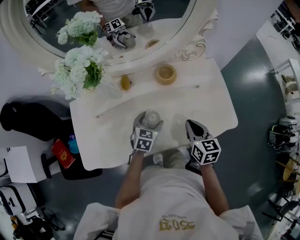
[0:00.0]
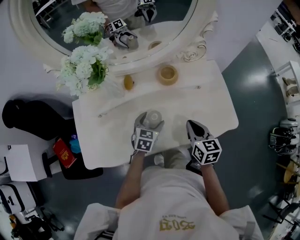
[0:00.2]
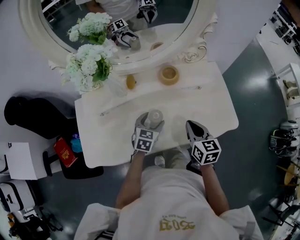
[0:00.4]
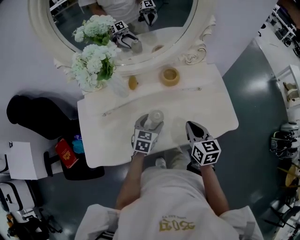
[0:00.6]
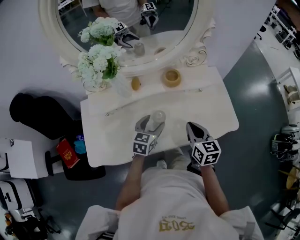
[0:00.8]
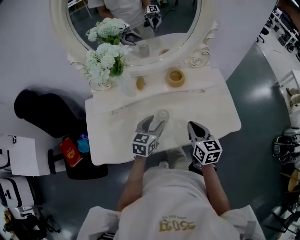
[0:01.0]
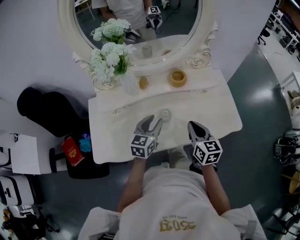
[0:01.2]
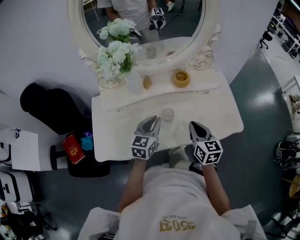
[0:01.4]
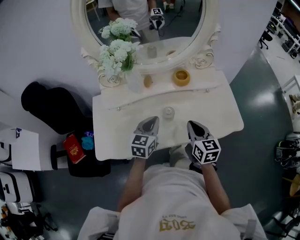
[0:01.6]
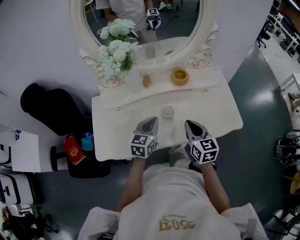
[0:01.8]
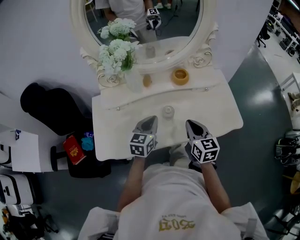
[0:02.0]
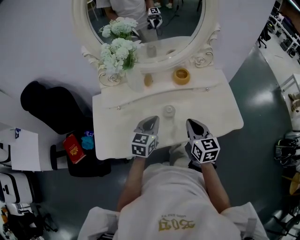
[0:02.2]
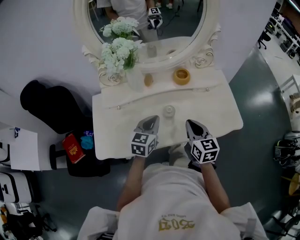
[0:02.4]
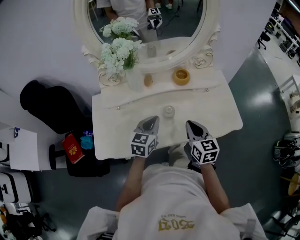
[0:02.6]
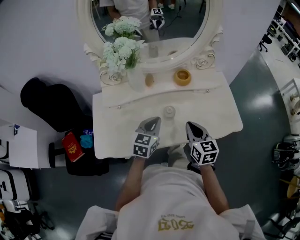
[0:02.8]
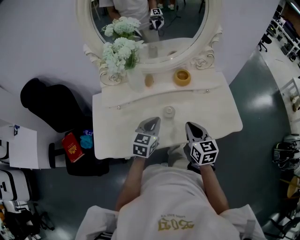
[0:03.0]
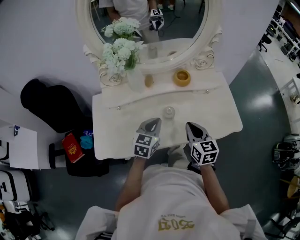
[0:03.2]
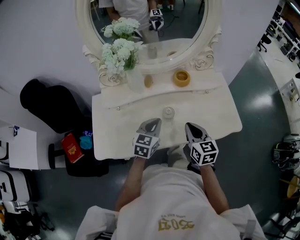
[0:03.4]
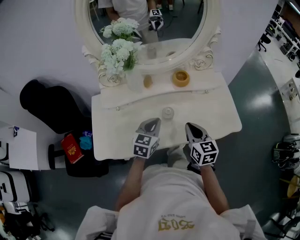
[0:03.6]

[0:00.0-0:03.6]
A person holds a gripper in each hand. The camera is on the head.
0:00.0 to 0:01.8: The left gripper moves upward, backward and to the left, some 15 cm, swivels roughly 20 degrees, and closes. Meanwhile the right gripper is displaced to the left, backward and upward by some 10 cm.
0:01.8 to 0:03.6: There are only small adjustments of the grippers.

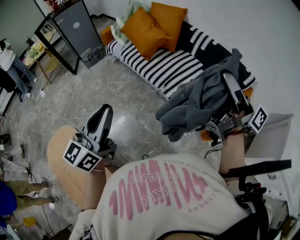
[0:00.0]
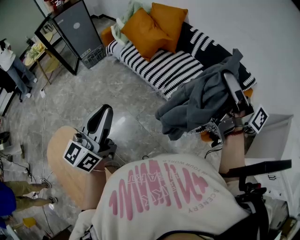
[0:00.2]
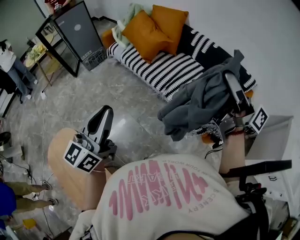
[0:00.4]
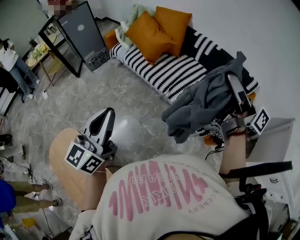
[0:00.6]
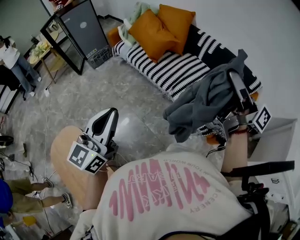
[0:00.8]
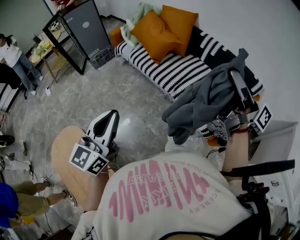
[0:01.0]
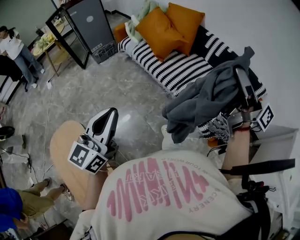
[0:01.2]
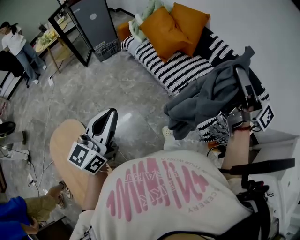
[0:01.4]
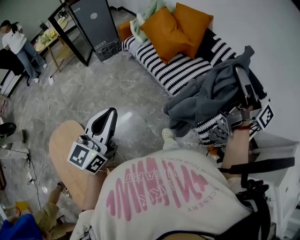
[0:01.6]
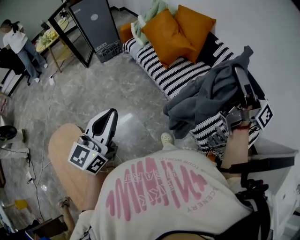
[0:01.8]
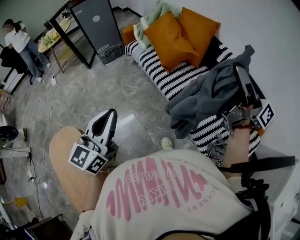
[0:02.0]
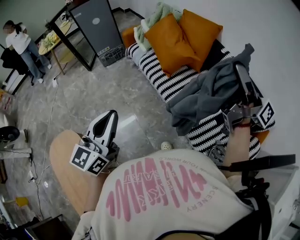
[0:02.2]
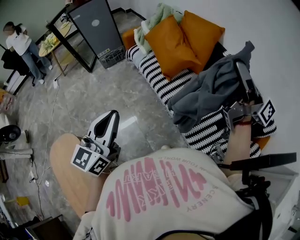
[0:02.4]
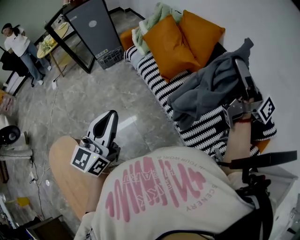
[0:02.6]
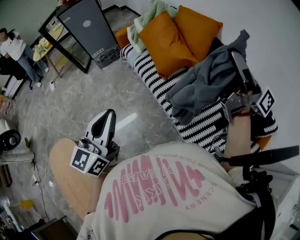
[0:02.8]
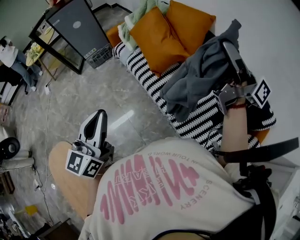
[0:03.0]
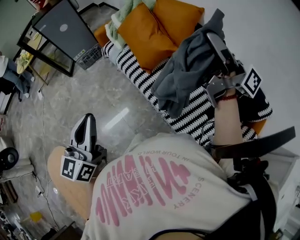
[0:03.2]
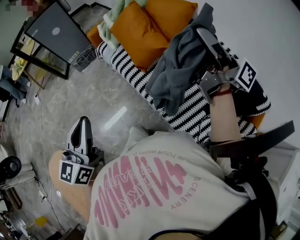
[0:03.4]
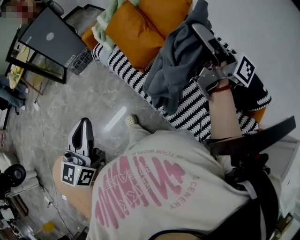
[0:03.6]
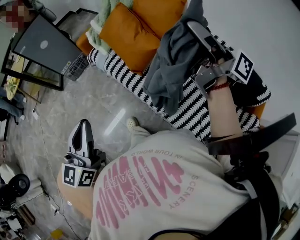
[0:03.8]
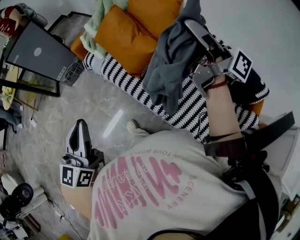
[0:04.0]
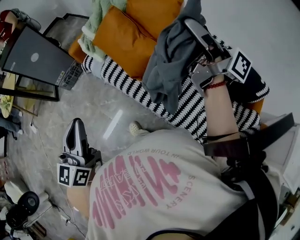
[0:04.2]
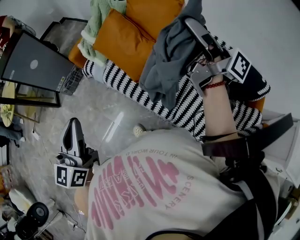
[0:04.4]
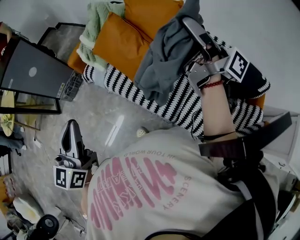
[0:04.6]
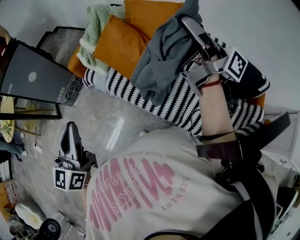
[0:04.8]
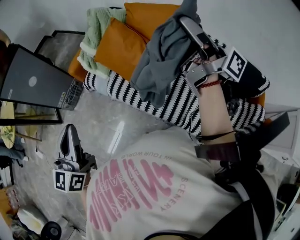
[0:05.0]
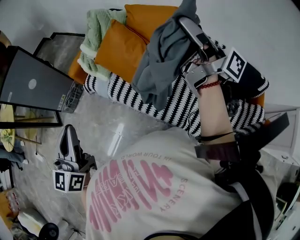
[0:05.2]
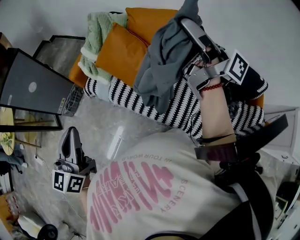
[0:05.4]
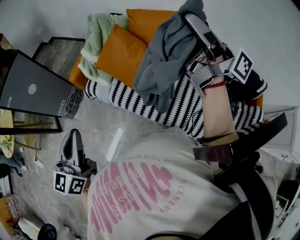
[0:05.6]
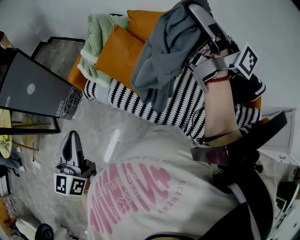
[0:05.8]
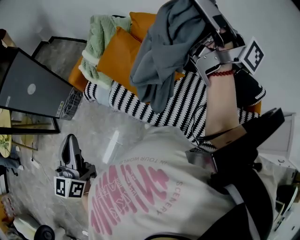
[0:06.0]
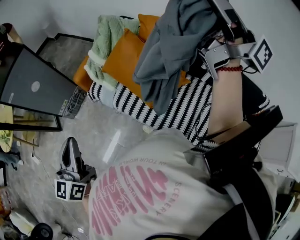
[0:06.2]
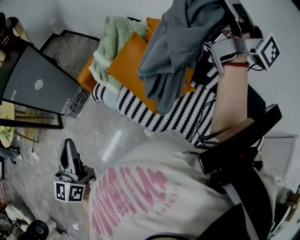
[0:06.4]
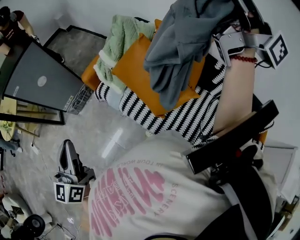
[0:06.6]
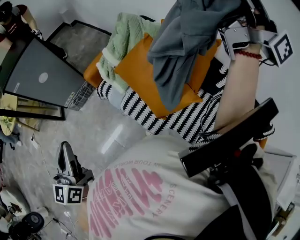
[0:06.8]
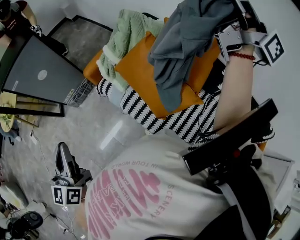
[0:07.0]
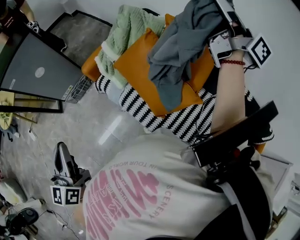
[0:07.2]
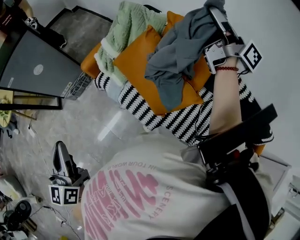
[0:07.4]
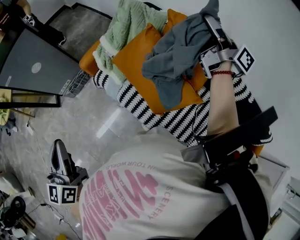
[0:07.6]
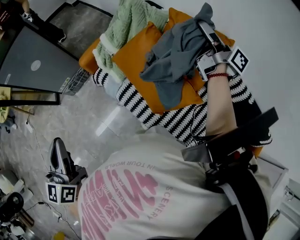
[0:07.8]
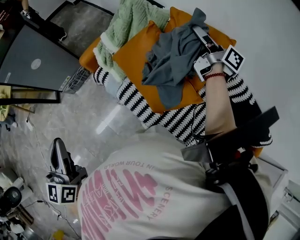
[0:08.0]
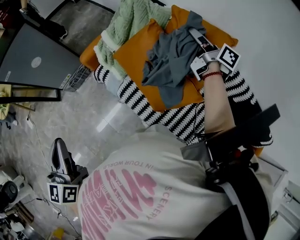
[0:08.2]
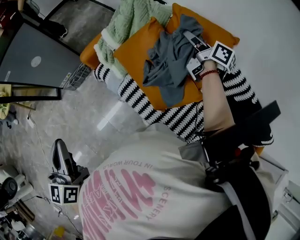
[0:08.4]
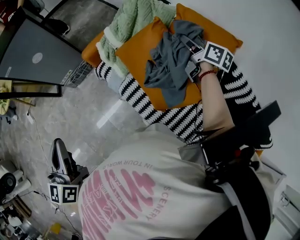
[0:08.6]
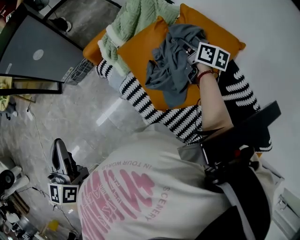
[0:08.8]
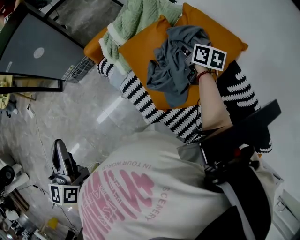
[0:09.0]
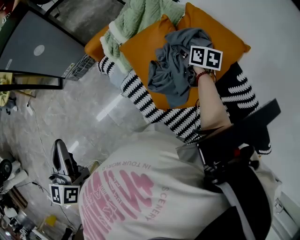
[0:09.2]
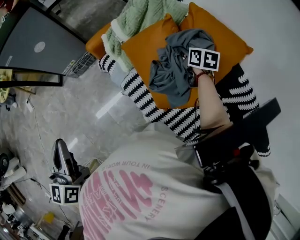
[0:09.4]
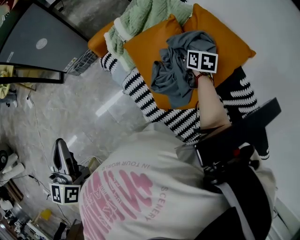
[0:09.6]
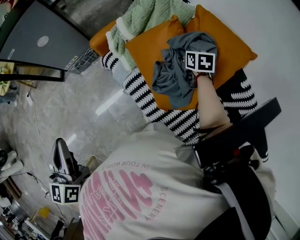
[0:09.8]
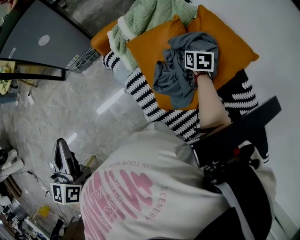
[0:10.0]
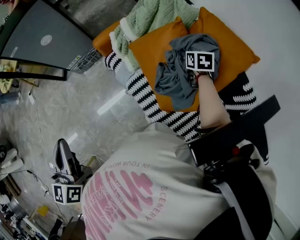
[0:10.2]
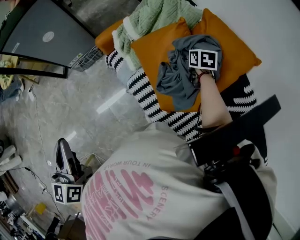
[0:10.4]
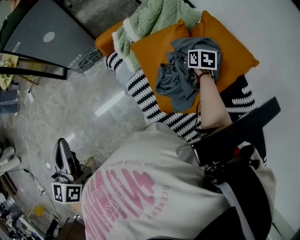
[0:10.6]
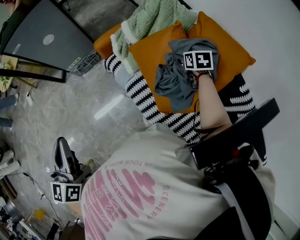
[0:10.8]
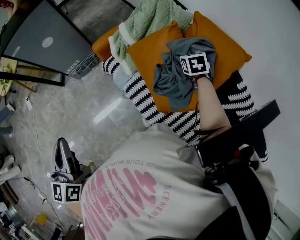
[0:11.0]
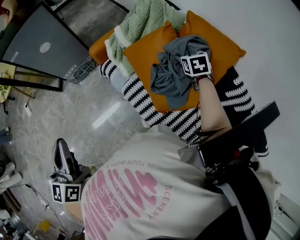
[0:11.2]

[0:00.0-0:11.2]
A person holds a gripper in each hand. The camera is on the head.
0:00.0 to 0:01.6: The left gripper is displaced forward by some 15 cm; the right gripper is displaced forward by approximately 20 cm.
0:01.6 to 0:03.2: The left gripper is displaced forward by approximately 10 cm. Meanwhile the right gripper goes approximately 15 cm forward.
0:03.2 to 0:04.8: The left gripper travels forward by some 25 cm. The right gripper heads forward, covering about 15 cm.
0:04.8 to 0:06.4: The right gripper moves upward and forward, about 20 cm, and rotates some 20 degrees, while the left gripper heads to the left and forward, covering roughly 10 cm.
0:06.4 to 0:08.0: The right gripper heads downward and forward, covering roughly 35 cm, and rotates about 40 degrees.
0:08.0 to 0:09.6: The right gripper heads downward, covering approximately 20 cm, and tilts its fingers approximately 50 degrees downward, while the left gripper heads backward, covering roughly 5 cm.
0:09.6 to 0:11.2: The right gripper swivels roughly 30 degrees, and opens up.

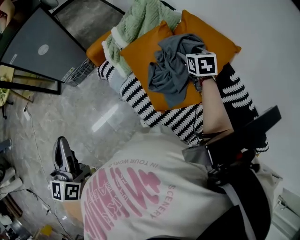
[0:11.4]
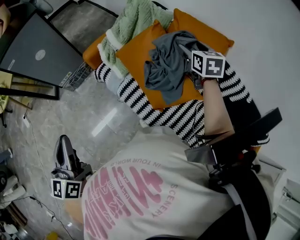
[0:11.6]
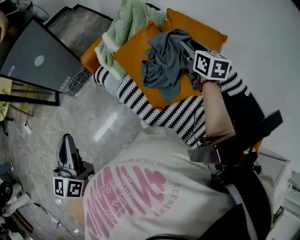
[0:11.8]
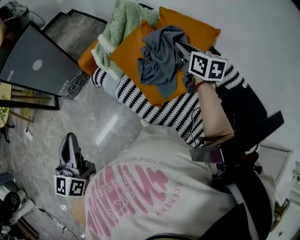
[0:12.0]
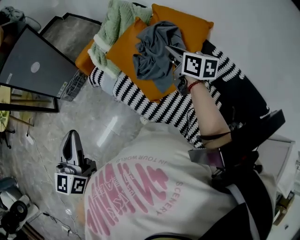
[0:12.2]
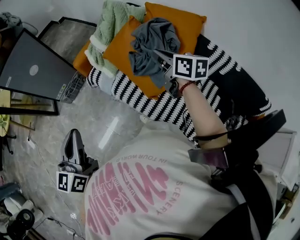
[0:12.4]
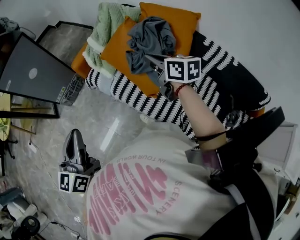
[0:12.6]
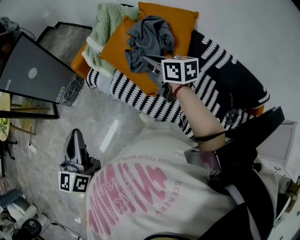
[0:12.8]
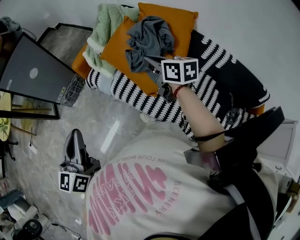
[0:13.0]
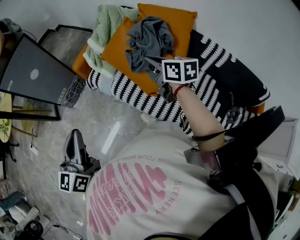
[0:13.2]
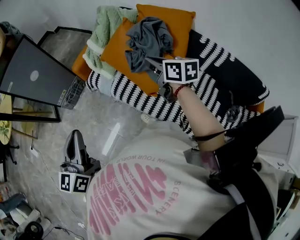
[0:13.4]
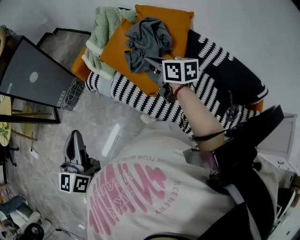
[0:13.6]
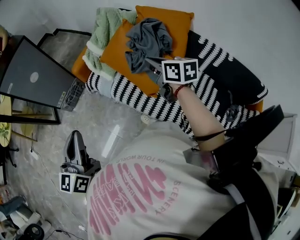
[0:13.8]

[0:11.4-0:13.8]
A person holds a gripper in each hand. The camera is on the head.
0:11.4 to 0:12.6: The right gripper travels backward and to the left by approximately 20 cm, swivels some 40 degrees, and closes up; the left gripper shifts approximately 5 cm to the right, and swivels some 20 degrees.
0:12.6 to 0:13.8: There are only small adjustments of the grippers.

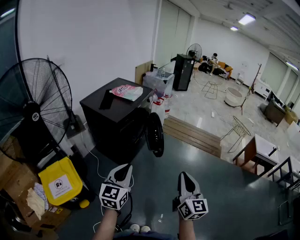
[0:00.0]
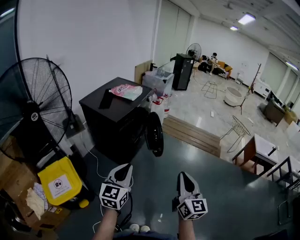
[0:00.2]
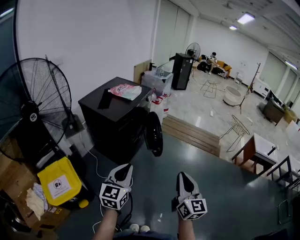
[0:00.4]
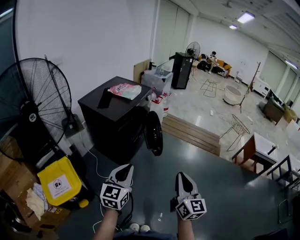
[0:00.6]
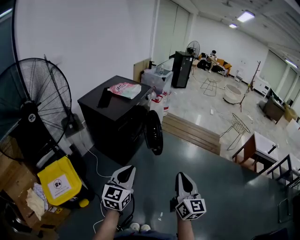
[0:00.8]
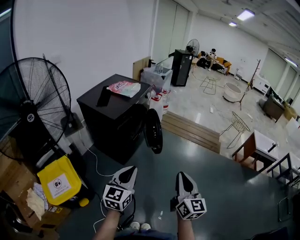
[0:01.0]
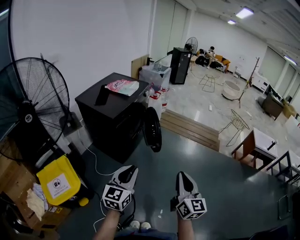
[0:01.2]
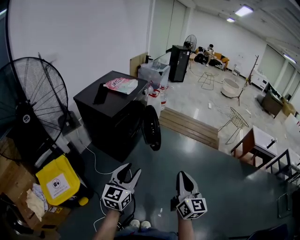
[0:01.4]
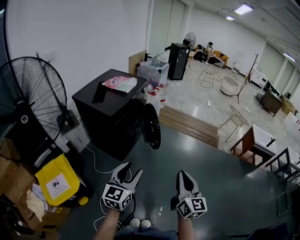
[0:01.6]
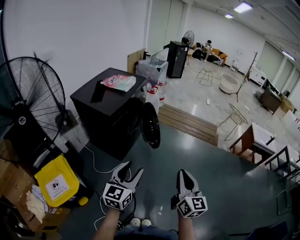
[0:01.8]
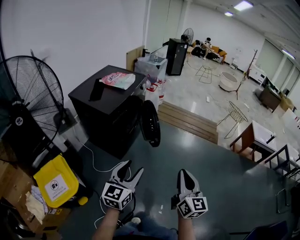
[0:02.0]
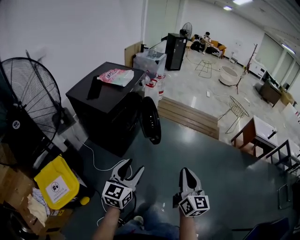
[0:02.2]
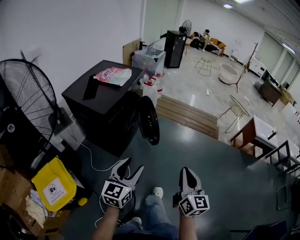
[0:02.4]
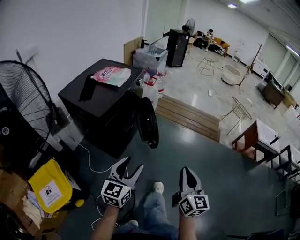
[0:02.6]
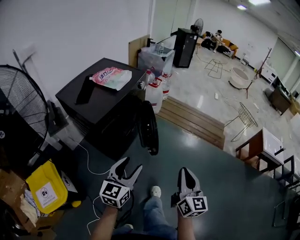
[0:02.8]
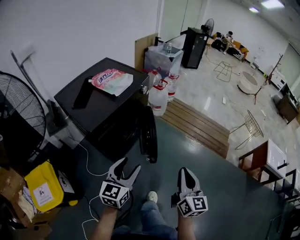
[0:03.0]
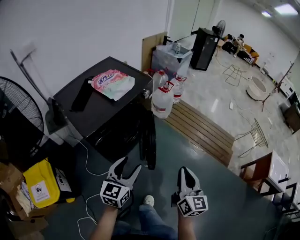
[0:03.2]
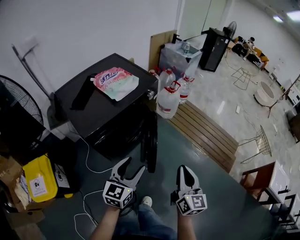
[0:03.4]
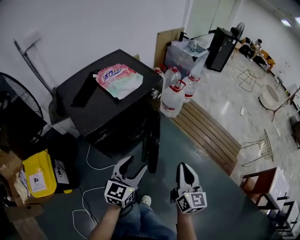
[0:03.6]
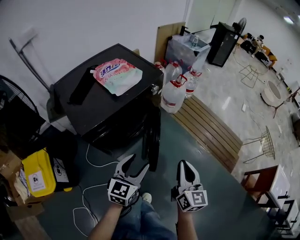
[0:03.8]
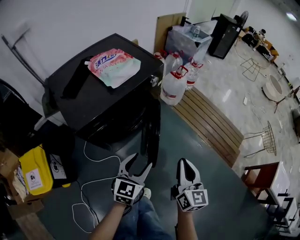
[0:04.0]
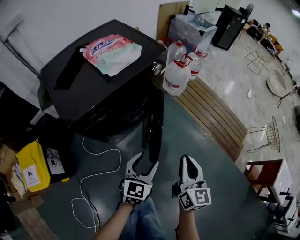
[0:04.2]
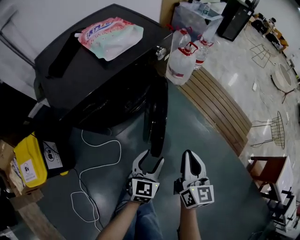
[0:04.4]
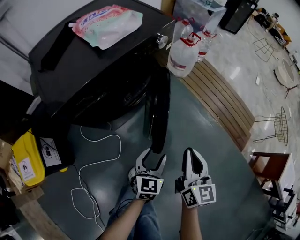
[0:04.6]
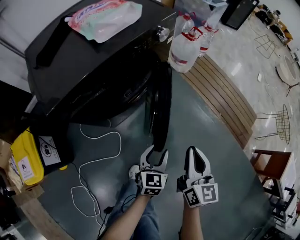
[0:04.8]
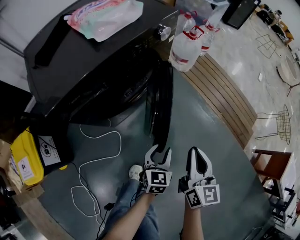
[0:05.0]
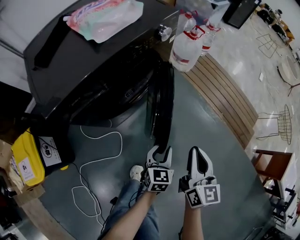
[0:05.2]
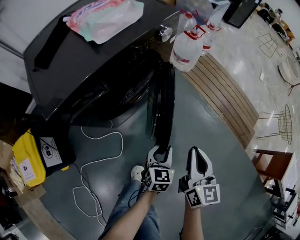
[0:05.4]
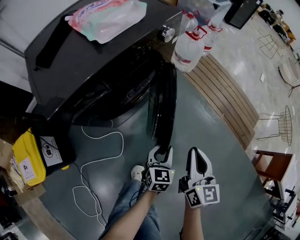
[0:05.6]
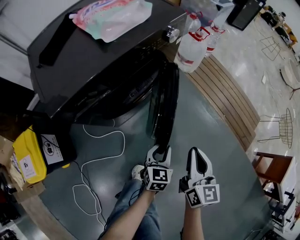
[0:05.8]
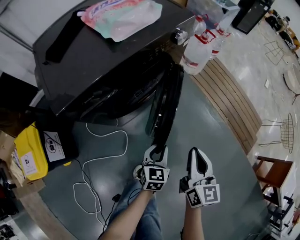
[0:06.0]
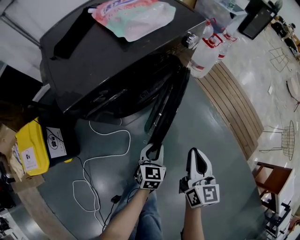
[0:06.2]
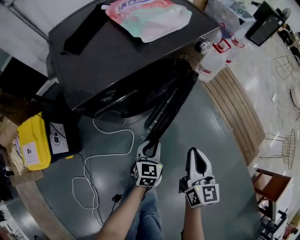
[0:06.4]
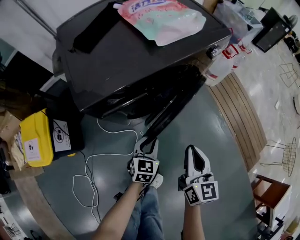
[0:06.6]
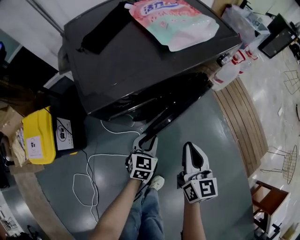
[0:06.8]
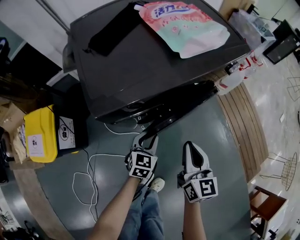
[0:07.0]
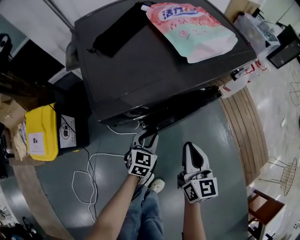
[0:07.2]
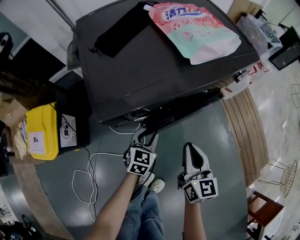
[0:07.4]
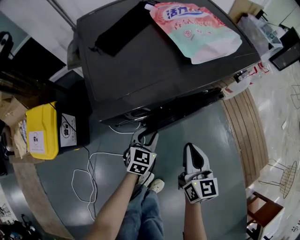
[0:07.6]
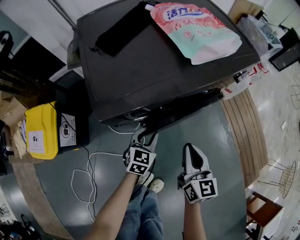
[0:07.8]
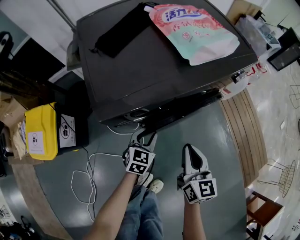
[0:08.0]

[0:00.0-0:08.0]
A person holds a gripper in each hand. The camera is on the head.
0:00.0 to 0:01.6: The left gripper shifts by approximately 5 cm, and opens up.
0:01.6 to 0:03.2: Both grippers travel together forward, approximately 40 cm.
0:03.2 to 0:04.8: The left gripper is displaced downward by some 30 cm, and swivels roughly 20 degrees, while the right gripper heads downward and forward, covering some 25 cm.
0:04.8 to 0:06.4: Both grippers move to the left, about 10 cm. The left gripper closes up.
0:06.4 to 0:08.0: Both grippers move to the left and forward, approximately 15 cm.
